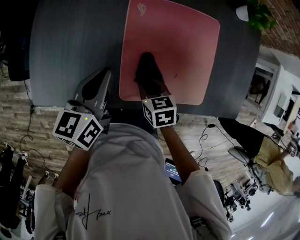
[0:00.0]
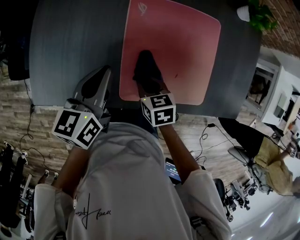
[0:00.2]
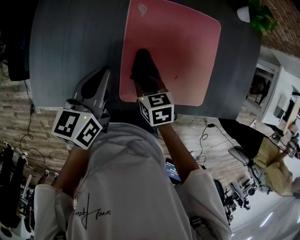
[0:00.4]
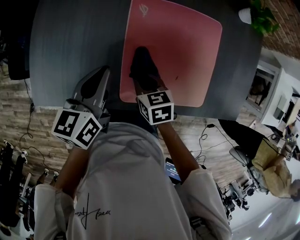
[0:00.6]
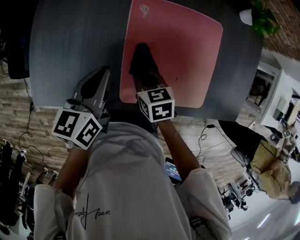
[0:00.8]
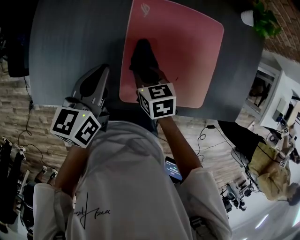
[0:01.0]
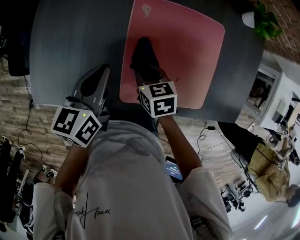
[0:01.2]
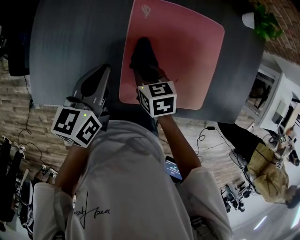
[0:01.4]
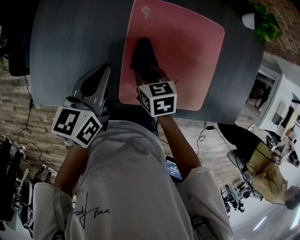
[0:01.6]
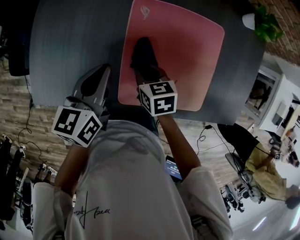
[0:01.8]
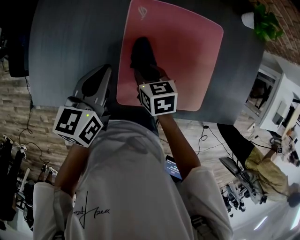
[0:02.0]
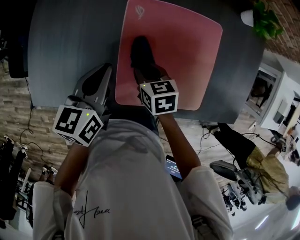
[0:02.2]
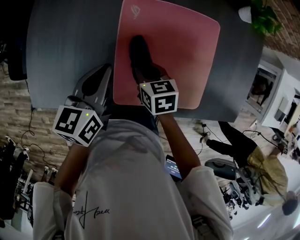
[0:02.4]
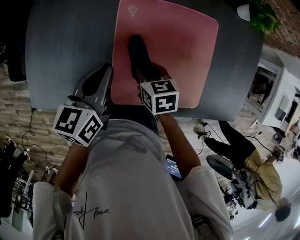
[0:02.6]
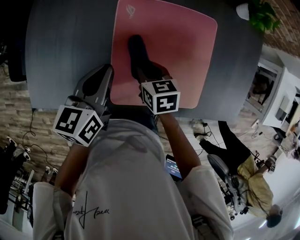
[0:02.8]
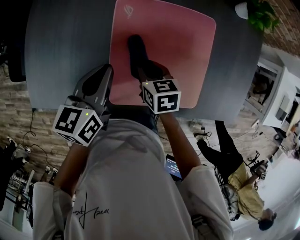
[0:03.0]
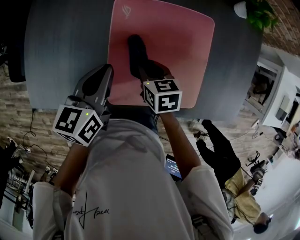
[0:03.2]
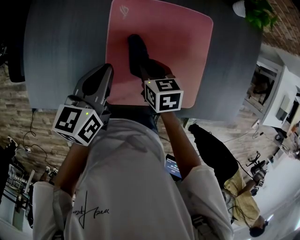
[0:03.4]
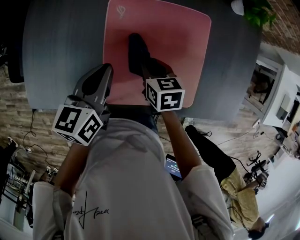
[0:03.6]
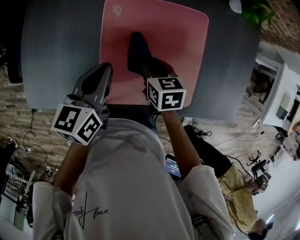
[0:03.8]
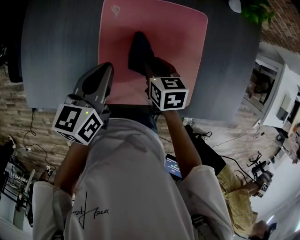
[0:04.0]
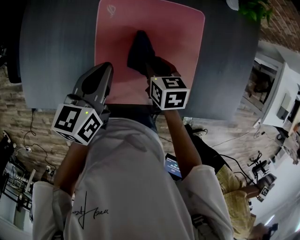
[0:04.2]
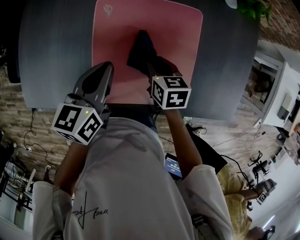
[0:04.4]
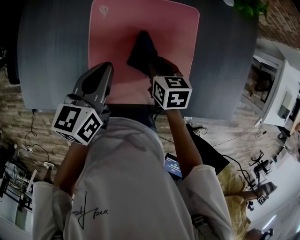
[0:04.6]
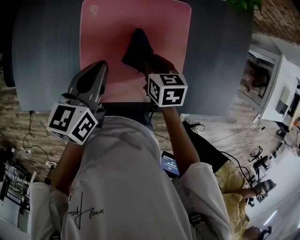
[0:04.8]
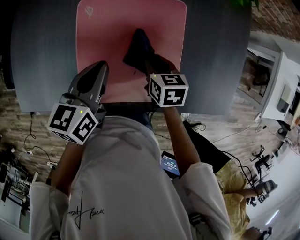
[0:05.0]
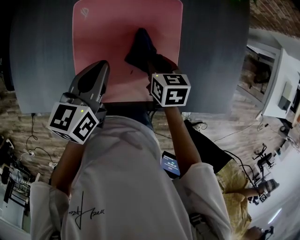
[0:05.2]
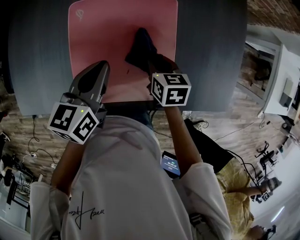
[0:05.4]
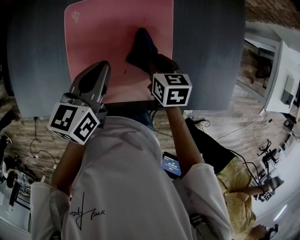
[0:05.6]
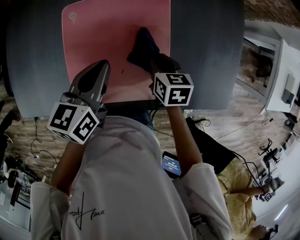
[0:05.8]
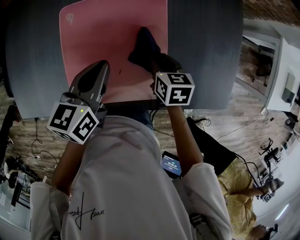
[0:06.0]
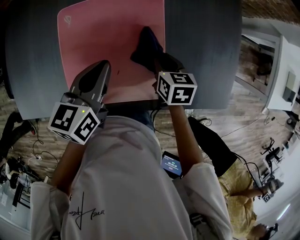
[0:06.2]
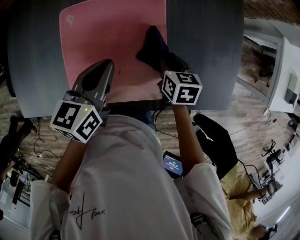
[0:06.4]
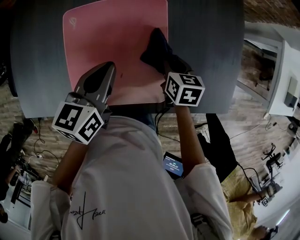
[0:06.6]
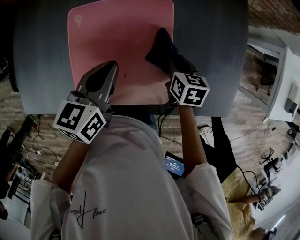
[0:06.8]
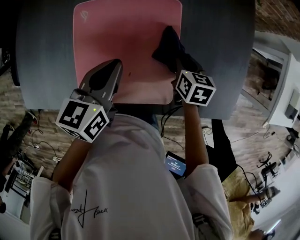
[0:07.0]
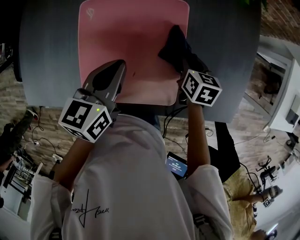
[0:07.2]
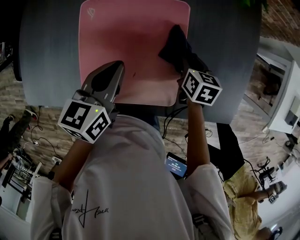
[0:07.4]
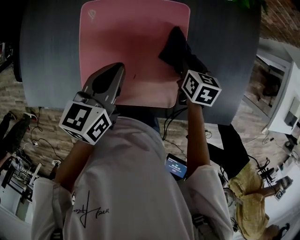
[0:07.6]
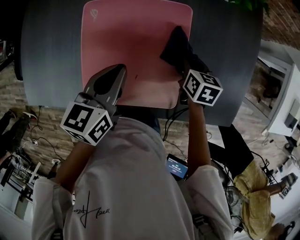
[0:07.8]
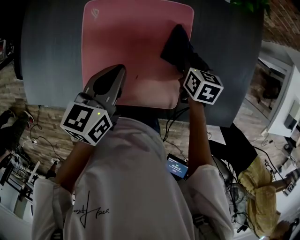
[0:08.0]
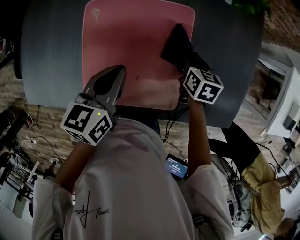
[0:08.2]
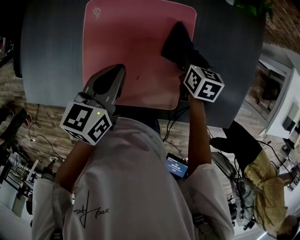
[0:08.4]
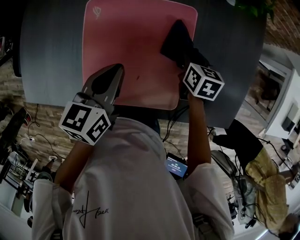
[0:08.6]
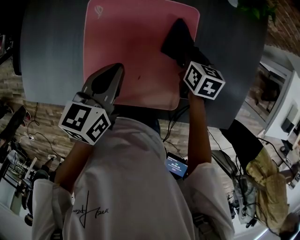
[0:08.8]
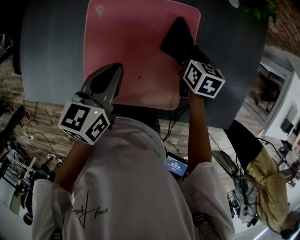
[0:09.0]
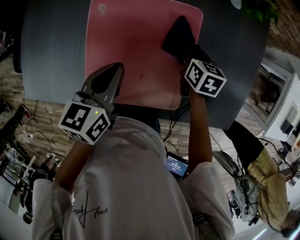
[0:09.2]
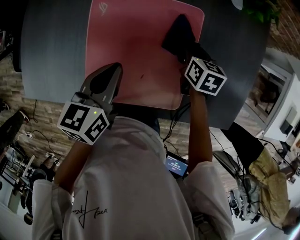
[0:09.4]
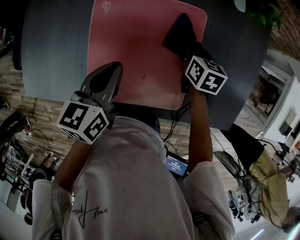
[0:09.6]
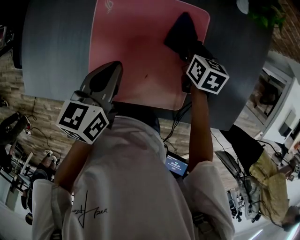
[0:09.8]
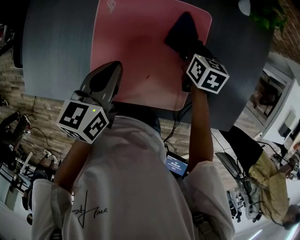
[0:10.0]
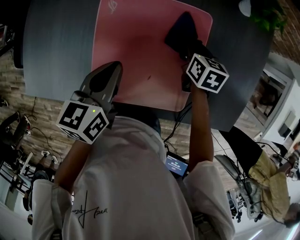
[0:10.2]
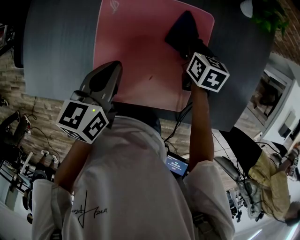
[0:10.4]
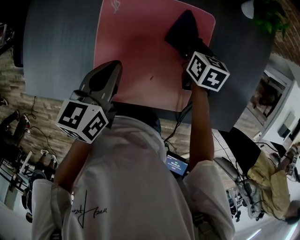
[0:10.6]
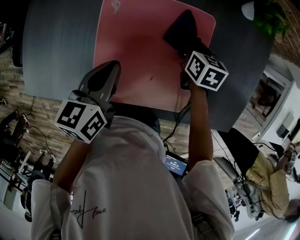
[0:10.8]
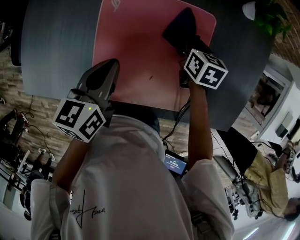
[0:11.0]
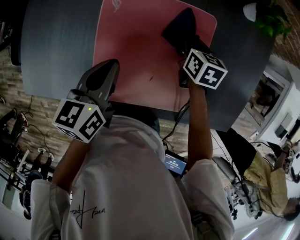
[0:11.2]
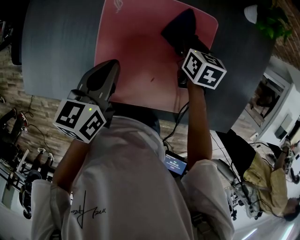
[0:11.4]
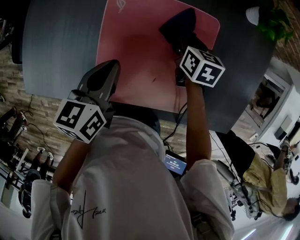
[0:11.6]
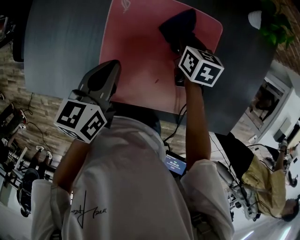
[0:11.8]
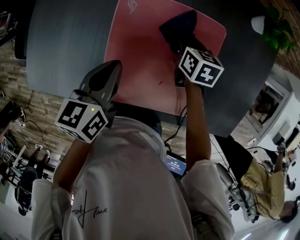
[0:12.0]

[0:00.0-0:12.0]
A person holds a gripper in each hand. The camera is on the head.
0:00.0 to 0:01.6: The right gripper shifts some 5 cm forward.
0:01.6 to 0:03.0: Both grippers move to the right, some 5 cm.
0:03.0 to 0:04.4: Both grippers travel together to the right, some 10 cm.
0:04.4 to 0:06.0: The two grippers go roughly 10 cm to the right.
0:06.0 to 0:07.6: The right gripper shifts some 5 cm forward.
0:07.6 to 0:09.0: The right gripper changes place by some 5 cm.
0:09.0 to 0:10.4: The two grippers go some 5 cm to the left.
0:10.4 to 0:12.0: The right gripper is displaced to the left by some 10 cm.

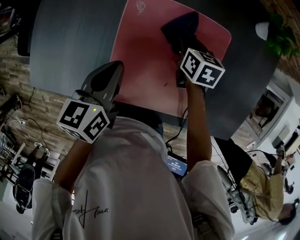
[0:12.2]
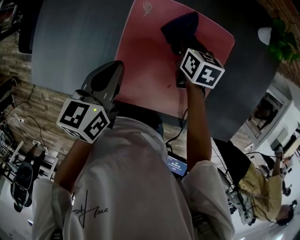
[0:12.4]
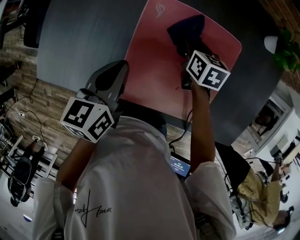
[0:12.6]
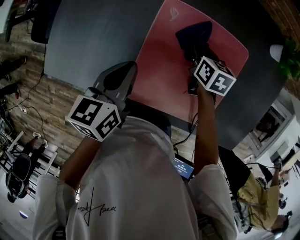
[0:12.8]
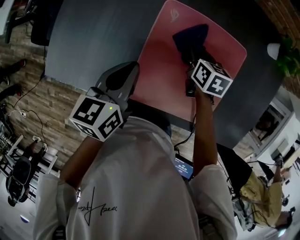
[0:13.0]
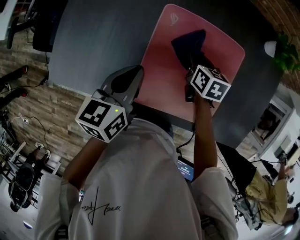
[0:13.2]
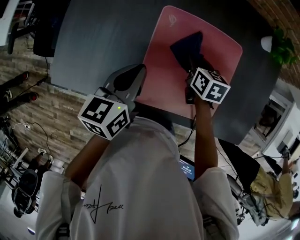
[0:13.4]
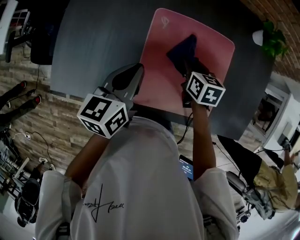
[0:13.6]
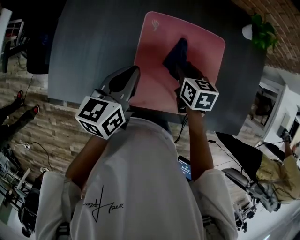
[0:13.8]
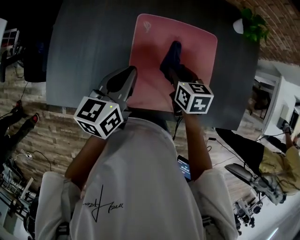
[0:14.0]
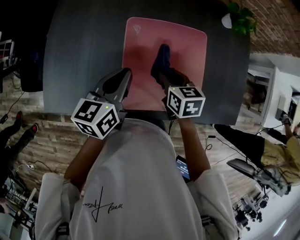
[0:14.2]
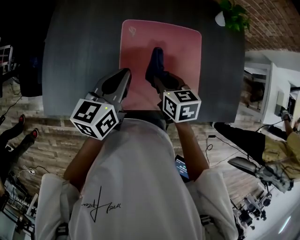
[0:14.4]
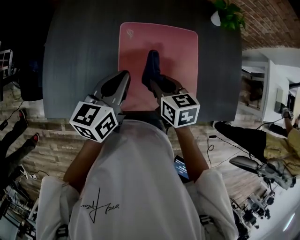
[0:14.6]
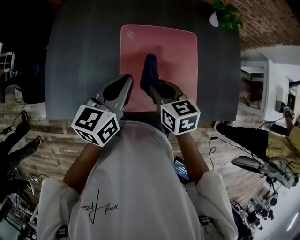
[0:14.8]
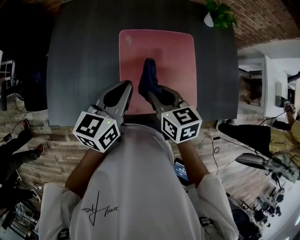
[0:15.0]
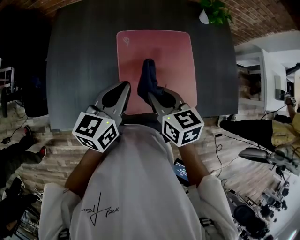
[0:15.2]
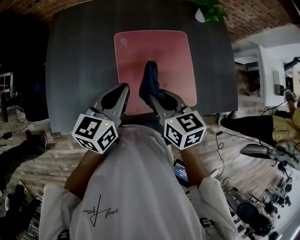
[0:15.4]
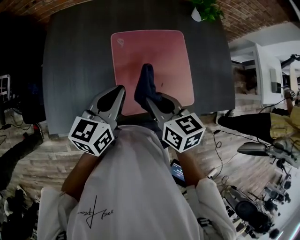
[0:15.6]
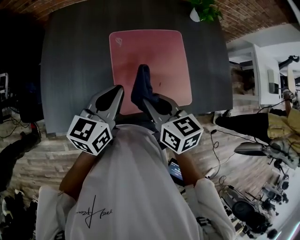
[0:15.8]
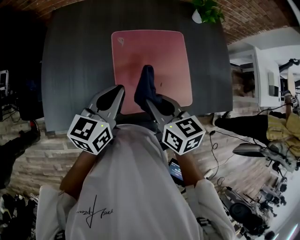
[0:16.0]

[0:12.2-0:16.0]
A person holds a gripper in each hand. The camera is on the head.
0:12.2 to 0:13.4: The left gripper moves to the left, some 5 cm. The right gripper shifts approximately 10 cm to the left and backward.
0:13.4 to 0:14.8: The left gripper goes roughly 5 cm upward. The right gripper is displaced backward and upward by about 20 cm.
0:14.8 to 0:16.0: The right gripper is displaced backward and upward by some 10 cm.

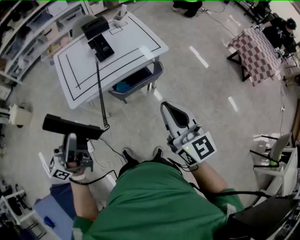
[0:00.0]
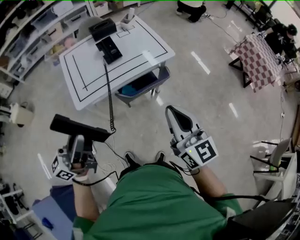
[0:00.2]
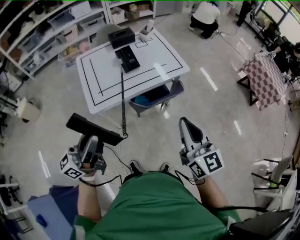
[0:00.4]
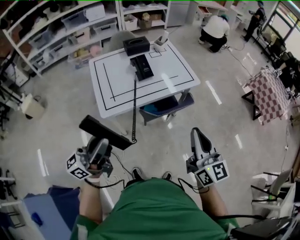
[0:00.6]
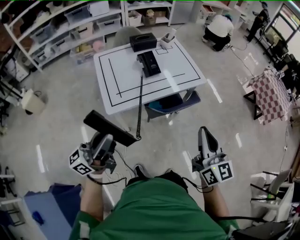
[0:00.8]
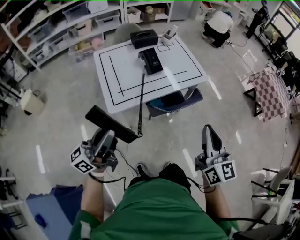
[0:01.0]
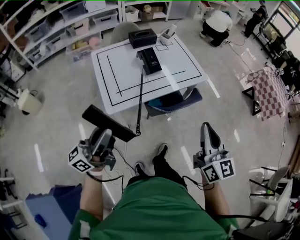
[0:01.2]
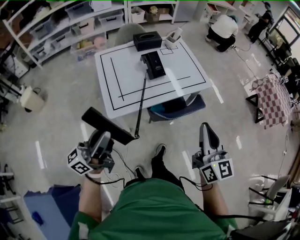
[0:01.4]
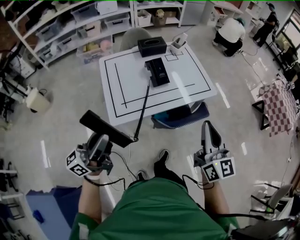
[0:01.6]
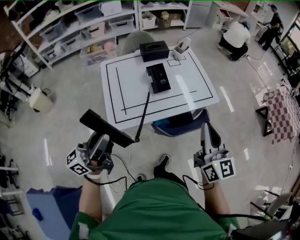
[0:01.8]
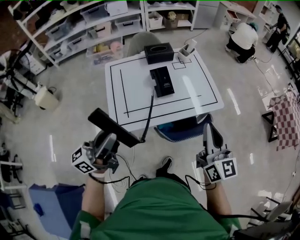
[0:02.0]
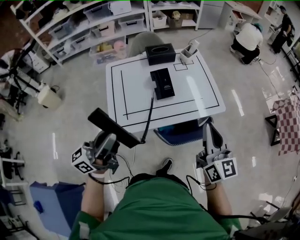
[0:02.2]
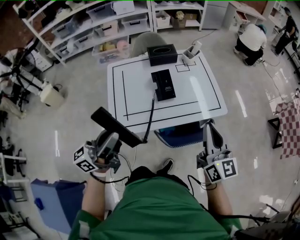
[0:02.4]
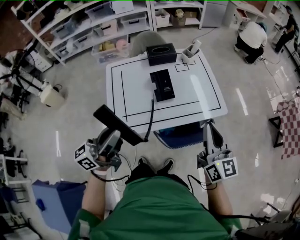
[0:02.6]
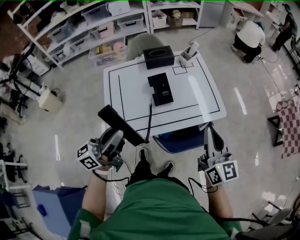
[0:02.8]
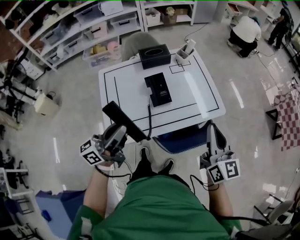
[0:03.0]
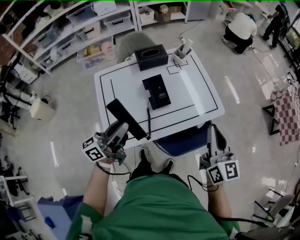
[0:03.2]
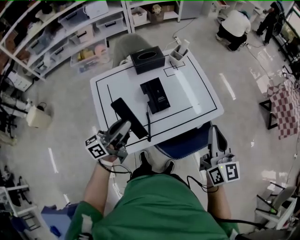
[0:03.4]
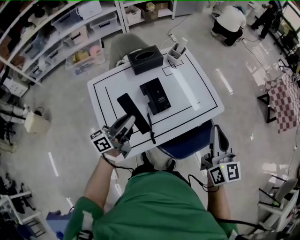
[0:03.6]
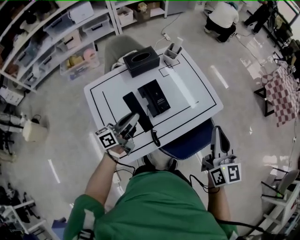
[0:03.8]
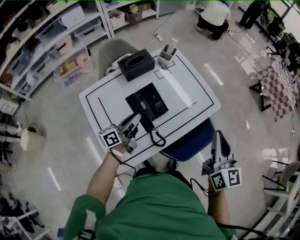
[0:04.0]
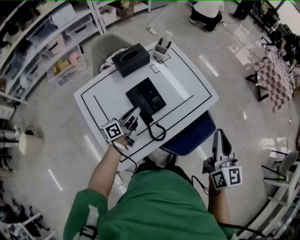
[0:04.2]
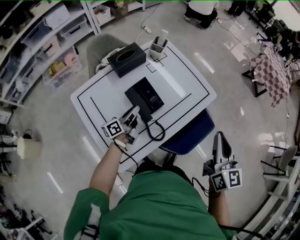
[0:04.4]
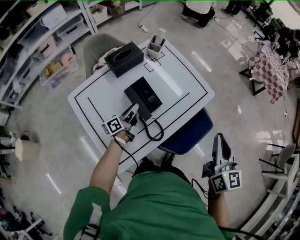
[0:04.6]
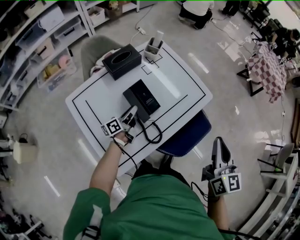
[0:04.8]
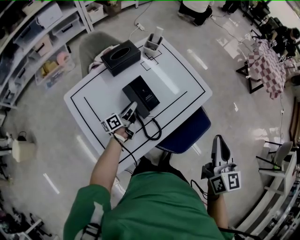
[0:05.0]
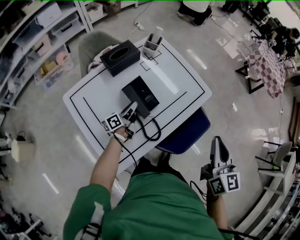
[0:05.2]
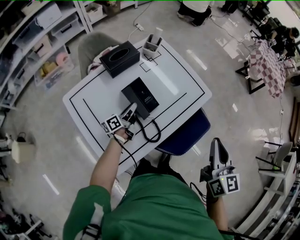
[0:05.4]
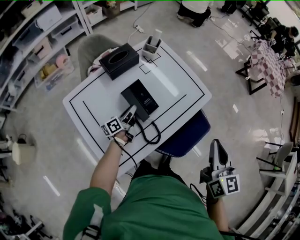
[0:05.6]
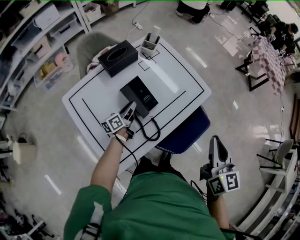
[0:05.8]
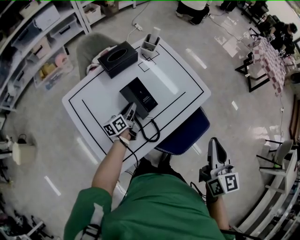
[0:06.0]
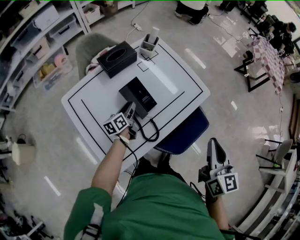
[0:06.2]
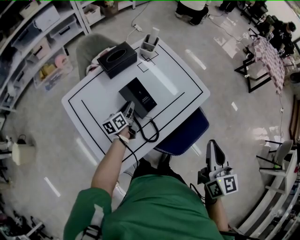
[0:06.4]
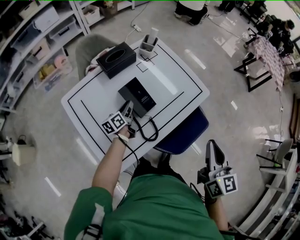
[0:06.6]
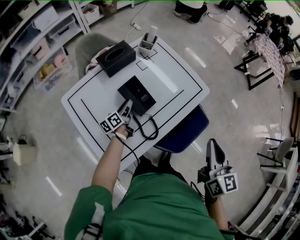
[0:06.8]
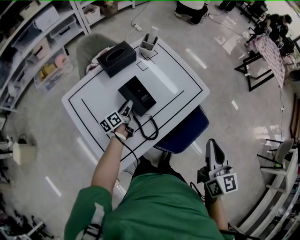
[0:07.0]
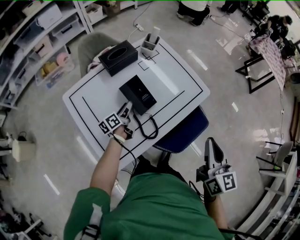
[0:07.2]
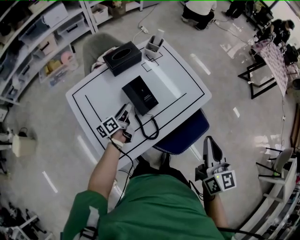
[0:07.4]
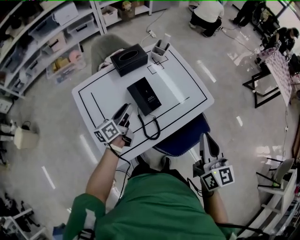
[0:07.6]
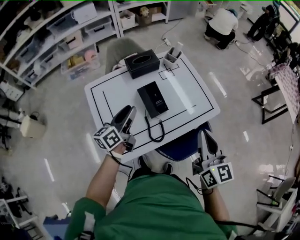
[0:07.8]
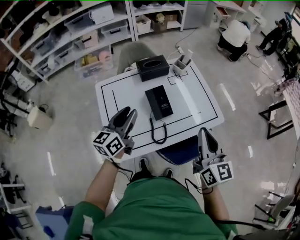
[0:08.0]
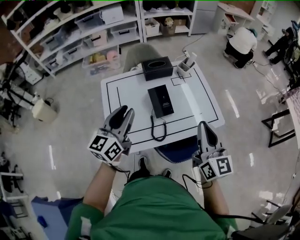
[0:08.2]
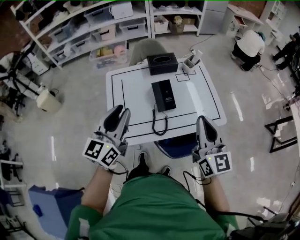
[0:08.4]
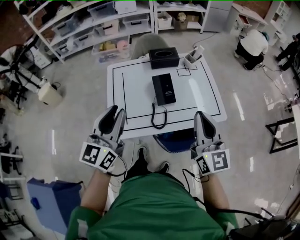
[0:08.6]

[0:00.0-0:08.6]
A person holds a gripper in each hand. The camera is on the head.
0:00.0 to 0:01.4: Both grippers move to the left, some 15 cm.
0:01.4 to 0:02.8: The grippers both shift forward by about 25 cm.
0:02.8 to 0:04.4: The right gripper changes place by about 5 cm, and rotates about 30 degrees, while the left gripper is displaced downward and forward by about 40 cm, and changes its angle by approximately 40 degrees.
0:04.4 to 0:05.8: The left gripper changes place by approximately 5 cm.
0:05.8 to 0:07.2: The grippers stay close to where they were, moving slightly.
0:07.2 to 0:08.6: The left gripper heads upward, covering some 35 cm, and rotates around the line of its fingers by about 50 degrees, clockwise from behind. Meanwhile the right gripper shifts some 10 cm upward, and rotates about 40 degrees.
